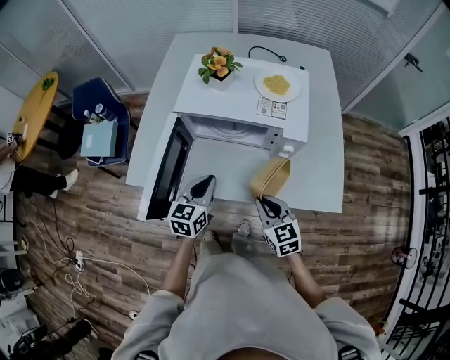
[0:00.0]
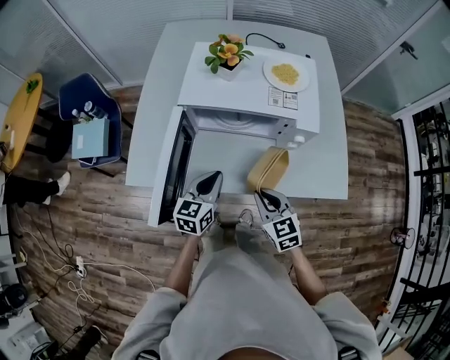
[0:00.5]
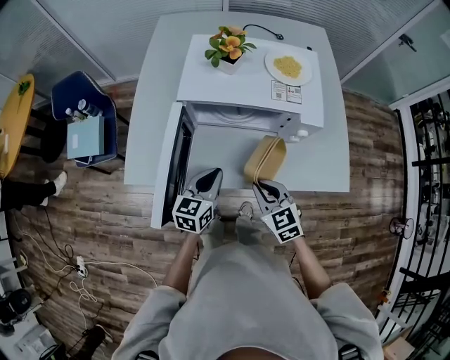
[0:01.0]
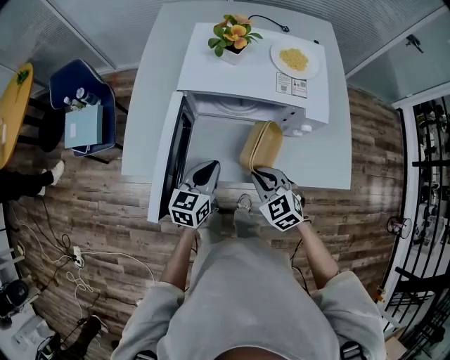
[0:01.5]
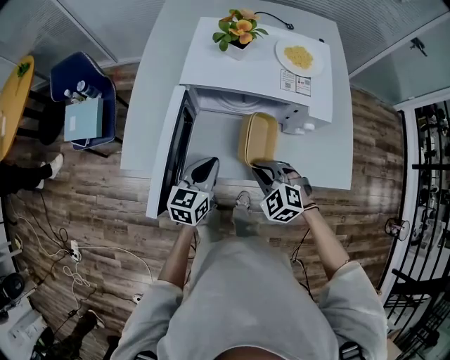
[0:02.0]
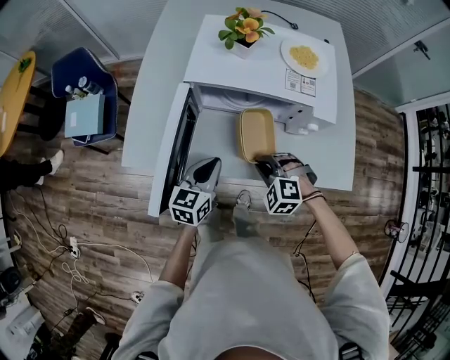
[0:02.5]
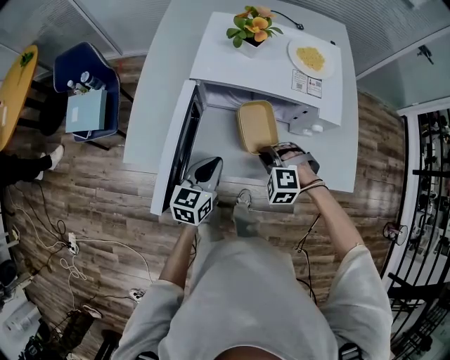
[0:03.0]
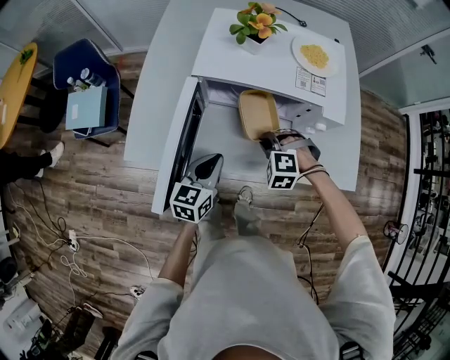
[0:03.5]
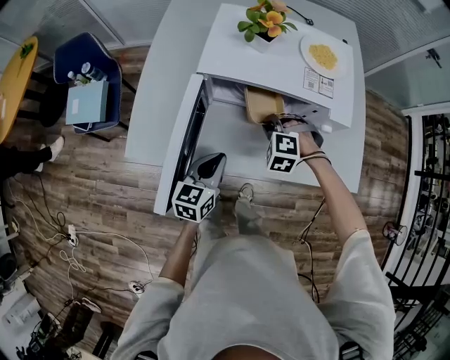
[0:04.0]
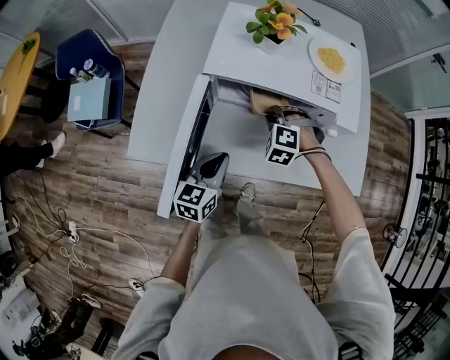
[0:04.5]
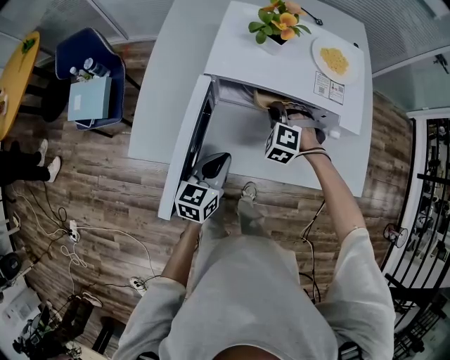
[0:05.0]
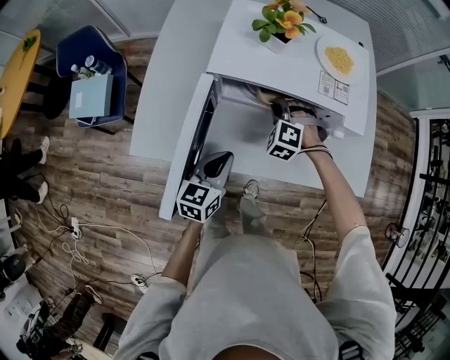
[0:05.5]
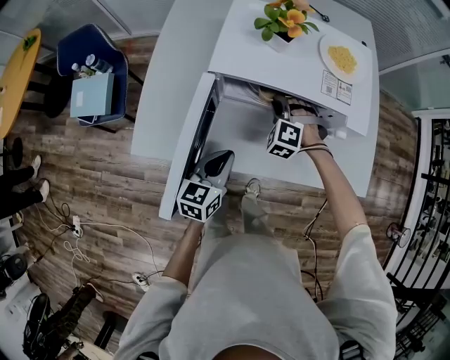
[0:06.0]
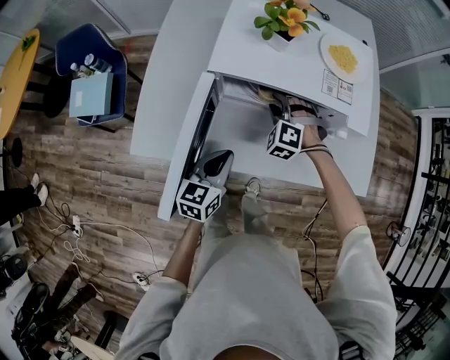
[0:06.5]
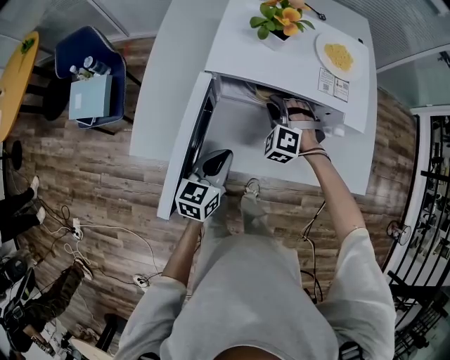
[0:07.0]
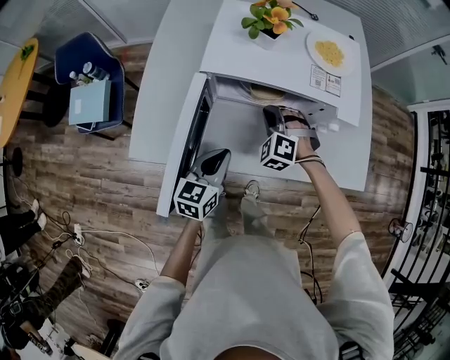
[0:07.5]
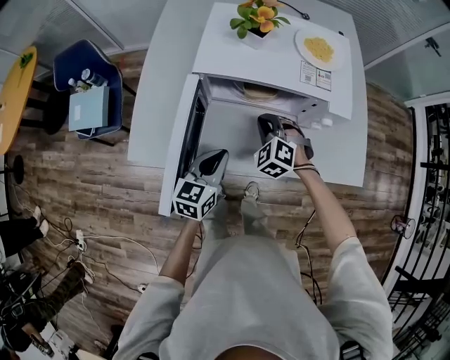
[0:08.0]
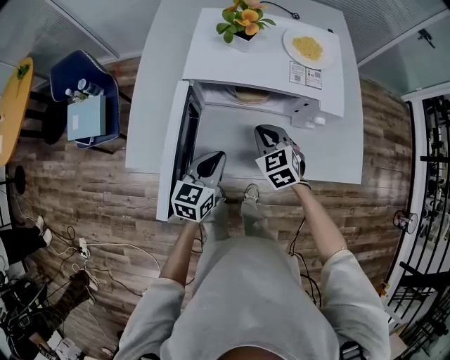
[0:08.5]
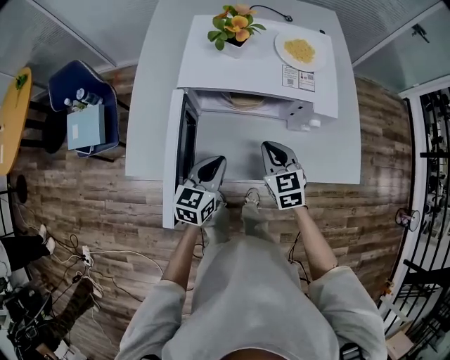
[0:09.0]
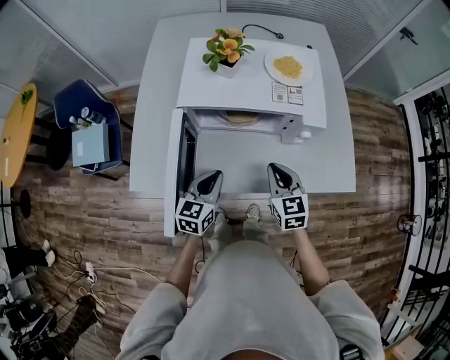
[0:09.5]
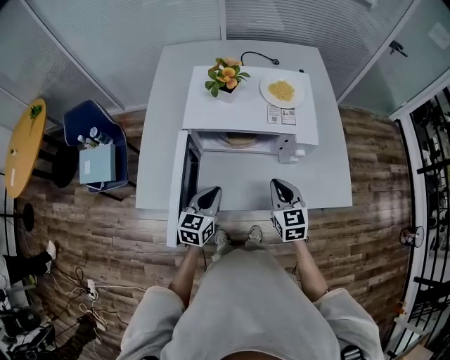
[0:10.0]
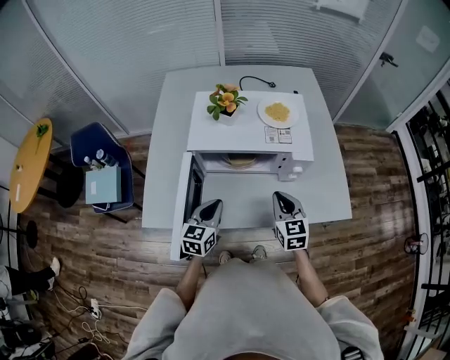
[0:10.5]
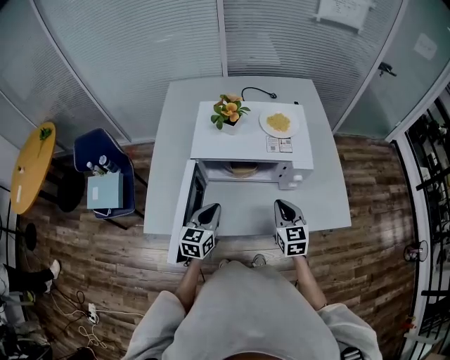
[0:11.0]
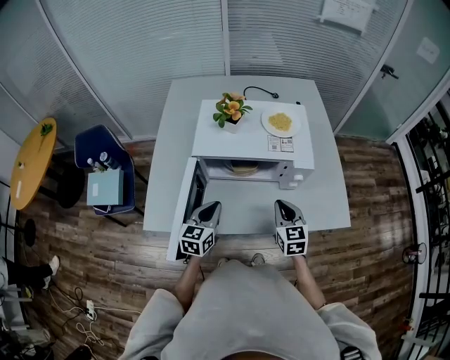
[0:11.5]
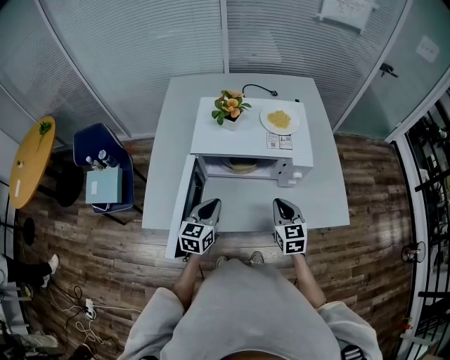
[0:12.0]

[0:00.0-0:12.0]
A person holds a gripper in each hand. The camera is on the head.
0:00.0 to 0:02.0: The right gripper shifts some 10 cm to the left, and twists roughly 40 degrees counterclockwise, seen from behind, while the left gripper changes place by roughly 5 cm.
0:02.0 to 0:04.0: The right gripper is displaced forward by approximately 10 cm, and changes its angle by approximately 30 degrees.
0:04.0 to 0:06.0: The right gripper moves forward, some 10 cm.
0:06.0 to 0:08.0: The right gripper heads backward, covering some 5 cm, turns by about 20 degrees, and opens, then closes again.
0:08.0 to 0:10.0: The right gripper heads to the right, upward and backward, covering some 15 cm, and rolls clockwise, seen from behind, by roughly 50 degrees.
0:10.0 to 0:12.0: The grippers move only a little.

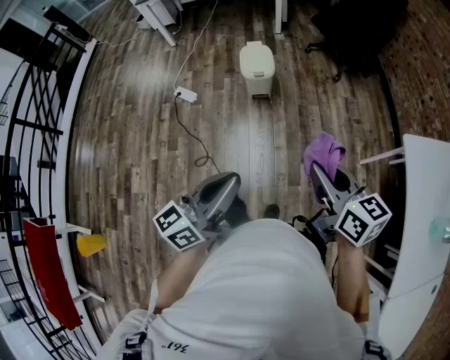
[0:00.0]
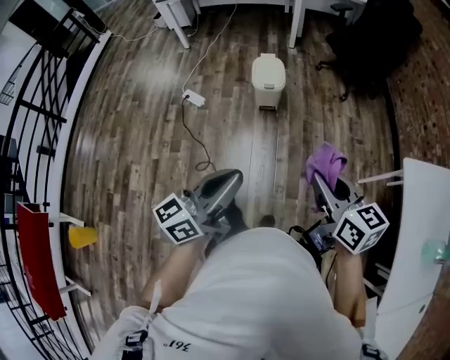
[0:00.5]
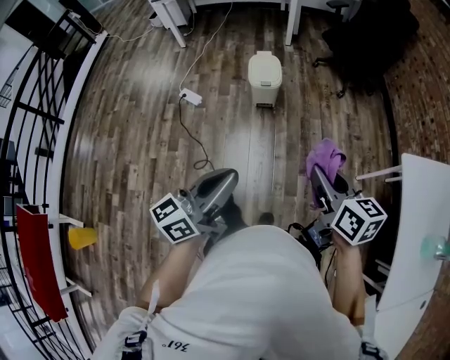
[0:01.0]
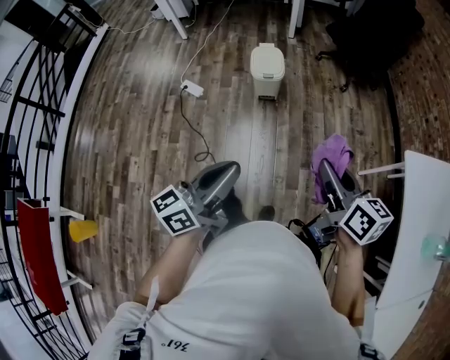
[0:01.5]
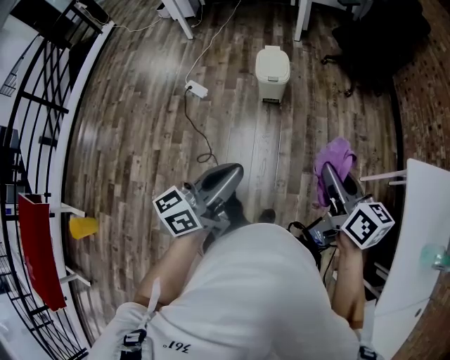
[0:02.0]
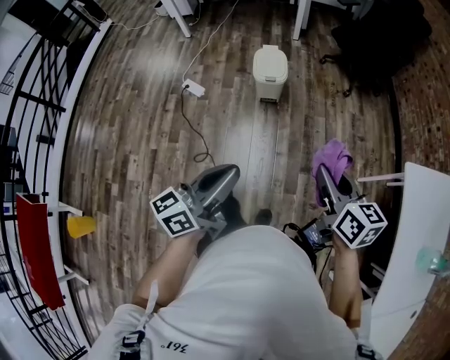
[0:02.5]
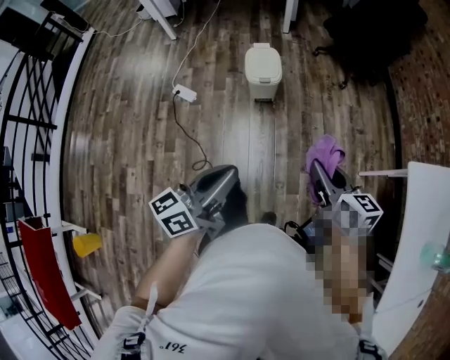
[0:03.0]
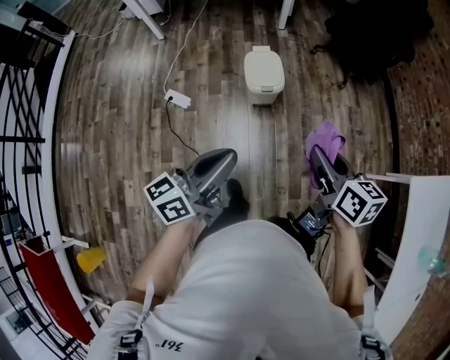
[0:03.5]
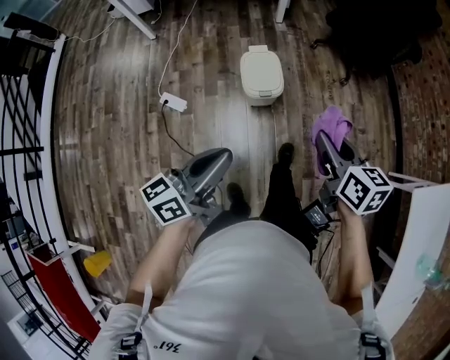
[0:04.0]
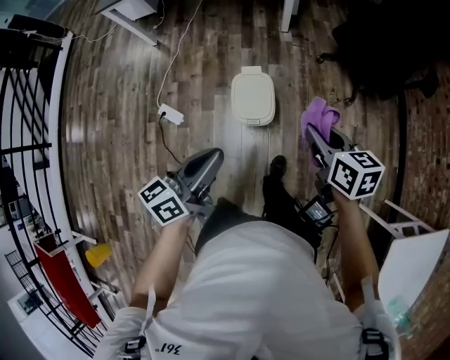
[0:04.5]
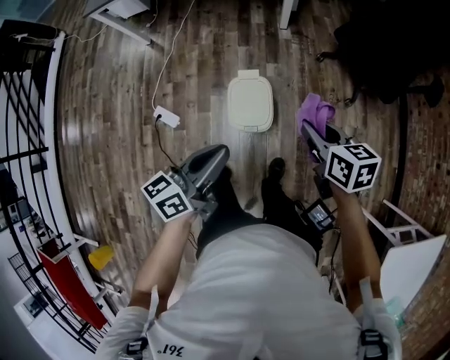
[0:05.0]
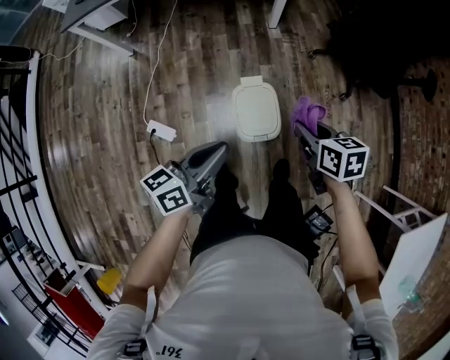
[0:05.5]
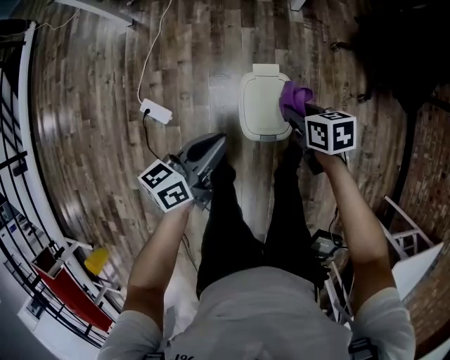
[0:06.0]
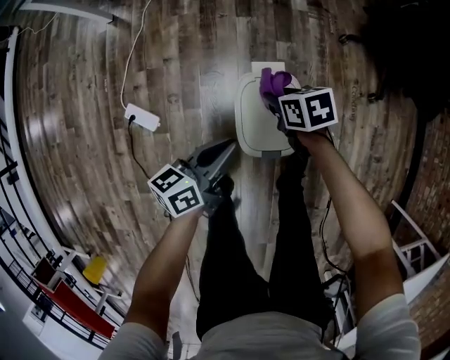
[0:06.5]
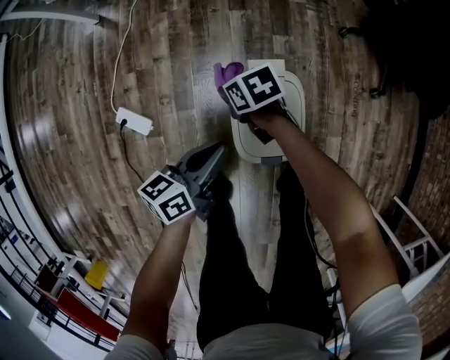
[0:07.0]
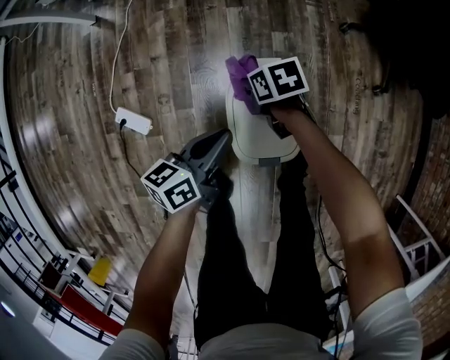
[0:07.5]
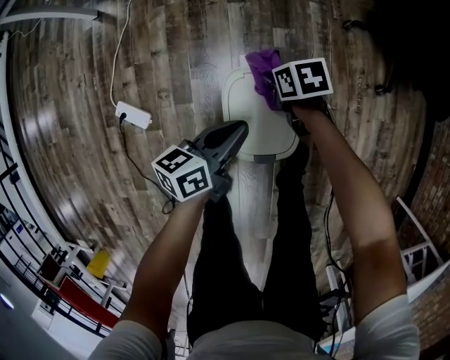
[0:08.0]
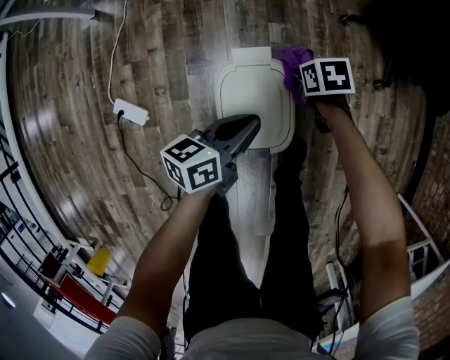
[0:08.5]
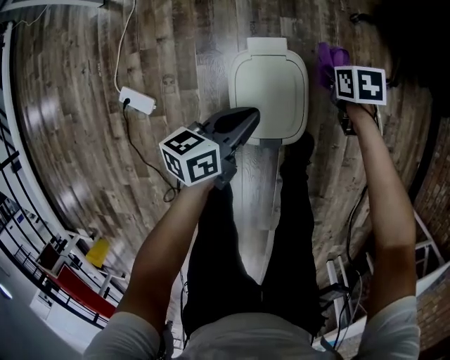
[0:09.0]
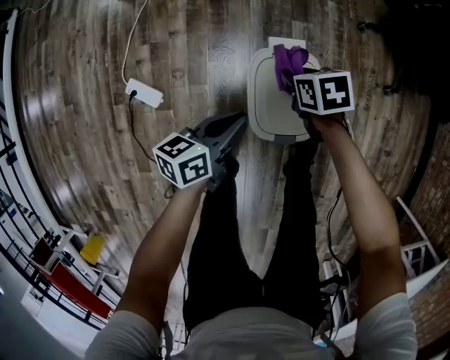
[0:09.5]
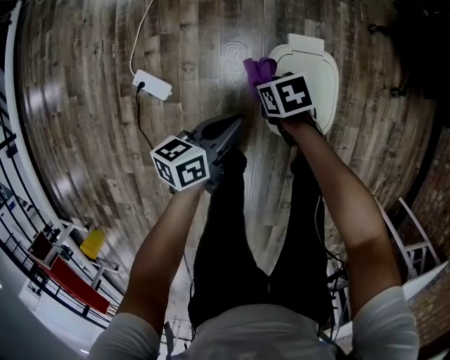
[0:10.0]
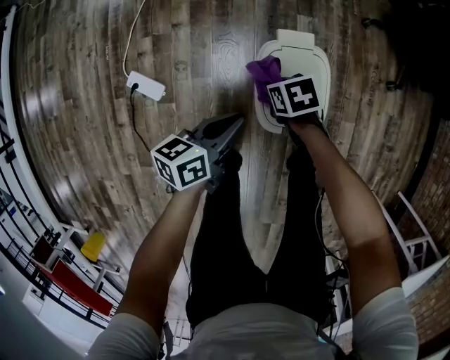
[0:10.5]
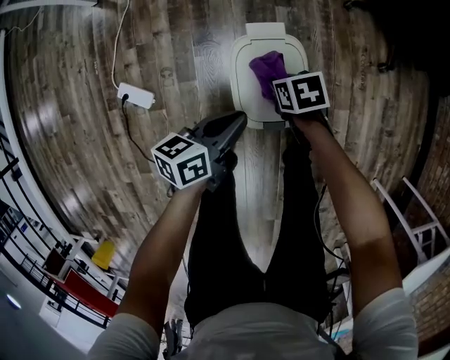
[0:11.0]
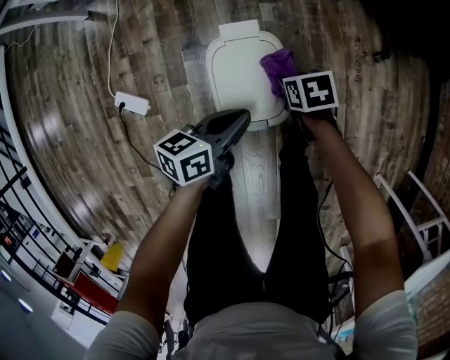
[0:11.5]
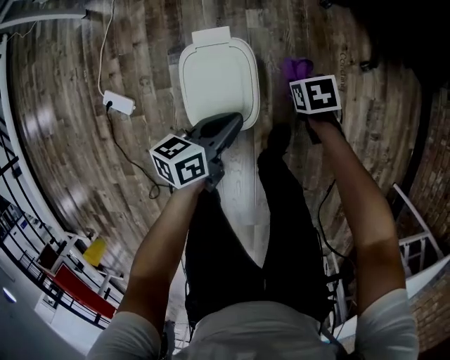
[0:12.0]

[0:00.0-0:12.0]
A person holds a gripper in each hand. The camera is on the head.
0:02.0 to 0:04.0: The left gripper ends up roughly 35 cm from where it was.
0:04.0 to 0:06.0: The left gripper moves about 40 cm.
0:06.0 to 0:08.0: The left gripper moves downward, some 20 cm.
0:08.0 to 0:10.0: The left gripper moves some 15 cm.
0:10.0 to 0:12.0: The left gripper changes place by some 25 cm.

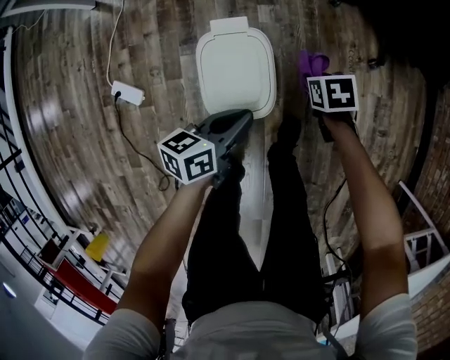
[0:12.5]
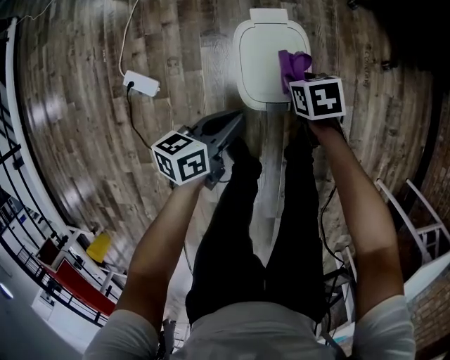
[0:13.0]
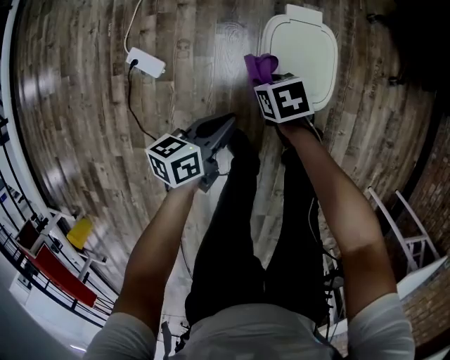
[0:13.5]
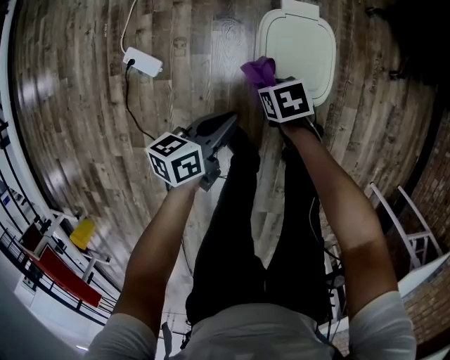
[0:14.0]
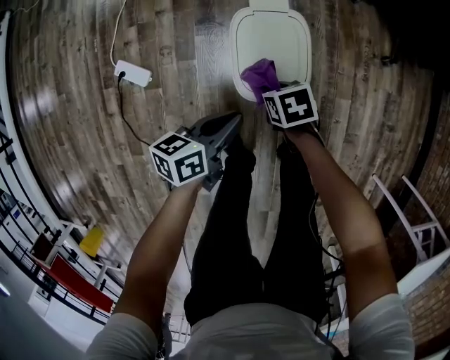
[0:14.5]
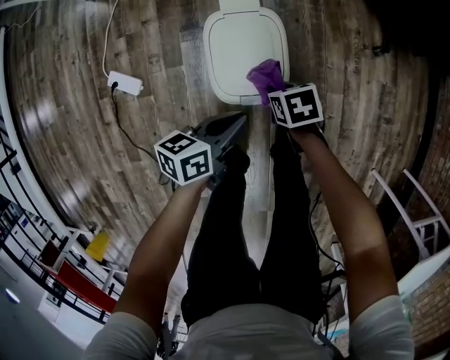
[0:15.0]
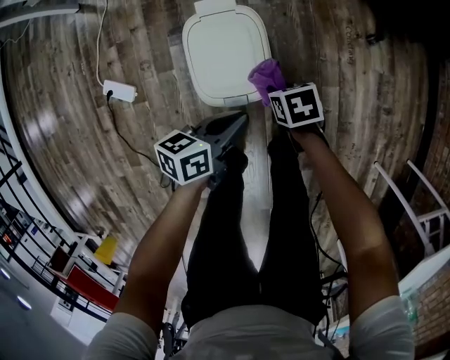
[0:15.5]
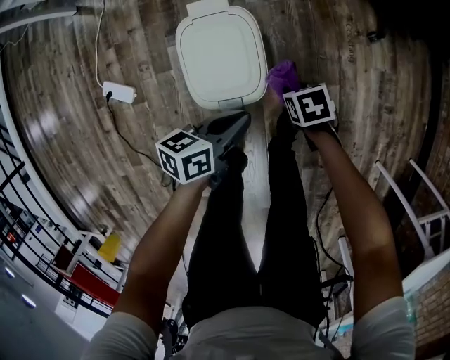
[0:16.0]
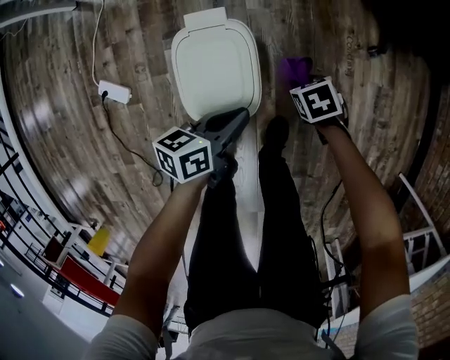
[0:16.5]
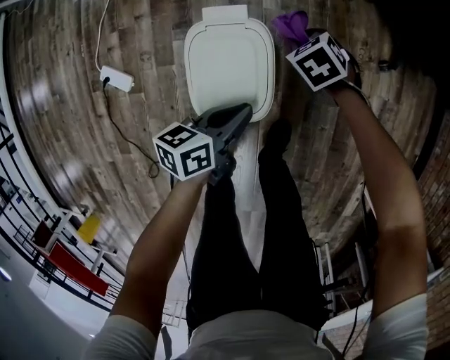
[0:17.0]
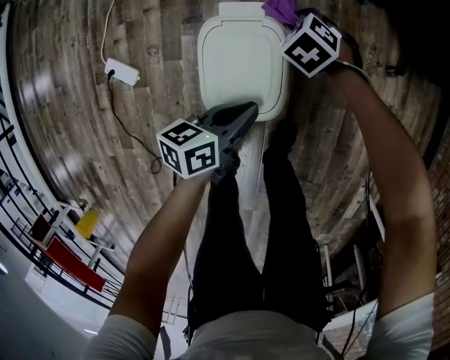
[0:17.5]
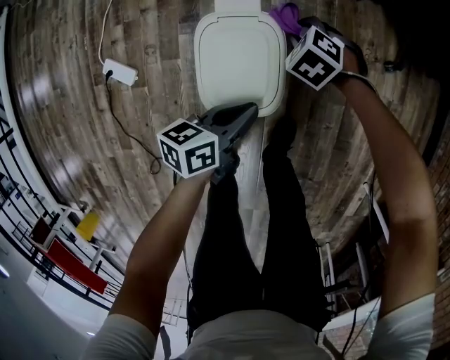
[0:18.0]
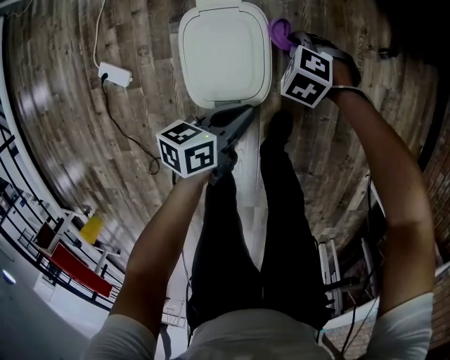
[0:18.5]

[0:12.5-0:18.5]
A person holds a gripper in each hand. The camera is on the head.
0:14.5 to 0:16.5: The left gripper moves about 15 cm.
